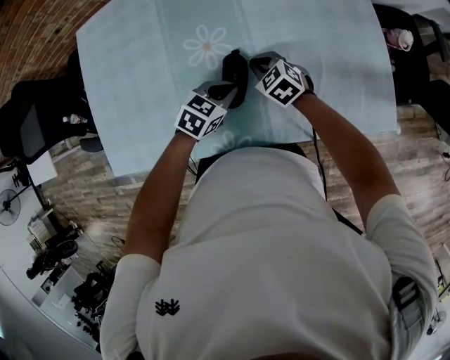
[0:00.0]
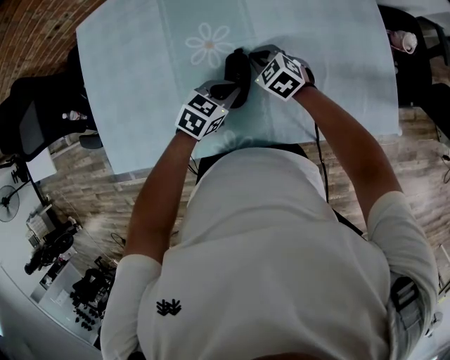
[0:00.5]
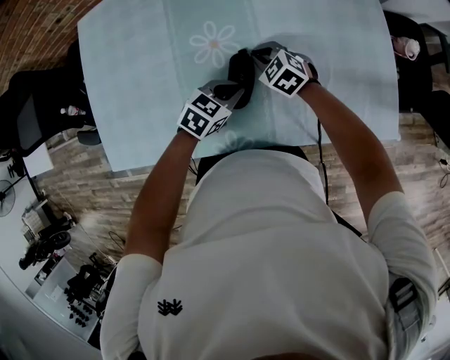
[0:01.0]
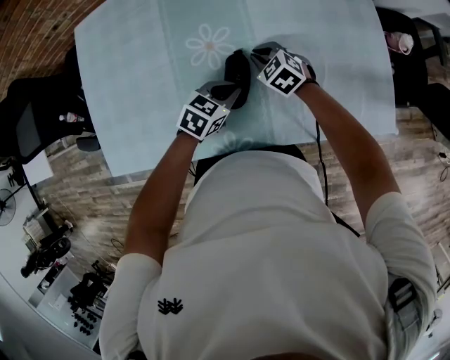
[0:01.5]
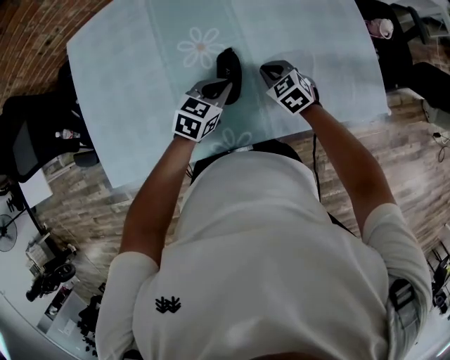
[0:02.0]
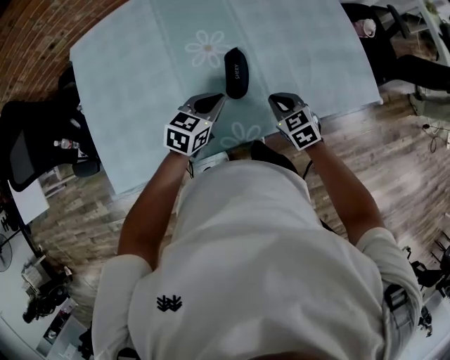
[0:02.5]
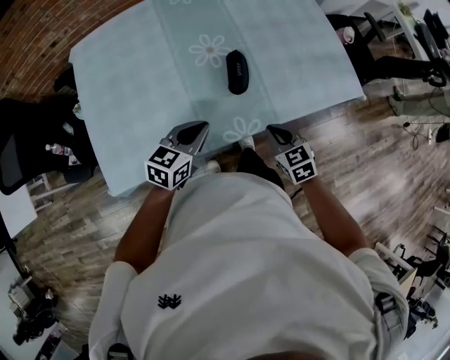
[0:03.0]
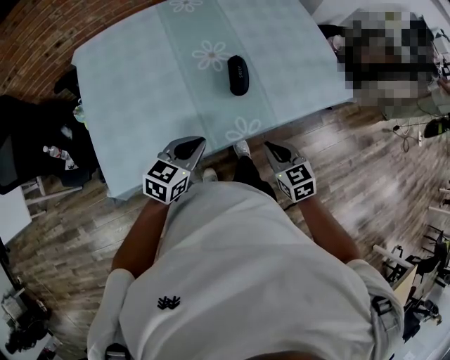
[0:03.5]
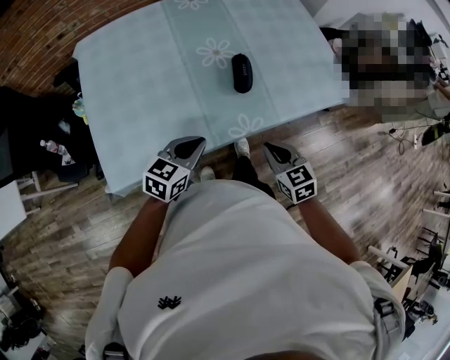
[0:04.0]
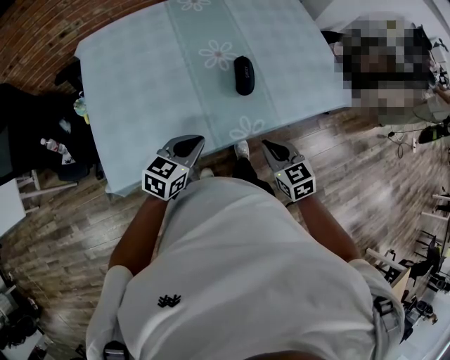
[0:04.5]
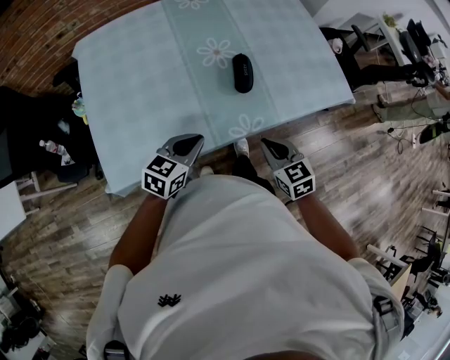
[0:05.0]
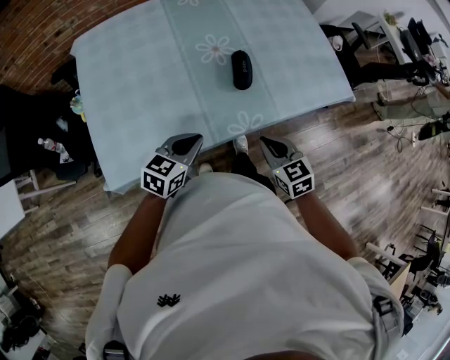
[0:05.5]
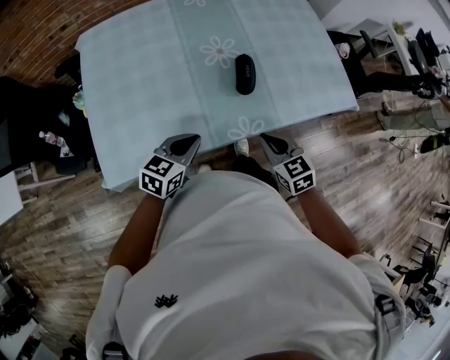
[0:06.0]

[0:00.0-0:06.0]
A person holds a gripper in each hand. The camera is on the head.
0:00.0 to 0:02.0: The right gripper changes place by about 5 cm.
0:02.0 to 0:04.0: The left gripper shifts some 30 cm backward and to the left. Meanwhile the right gripper travels backward and upward by roughly 35 cm, and turns by some 20 degrees.
0:04.0 to 0:06.0: The grippers make only small movements.

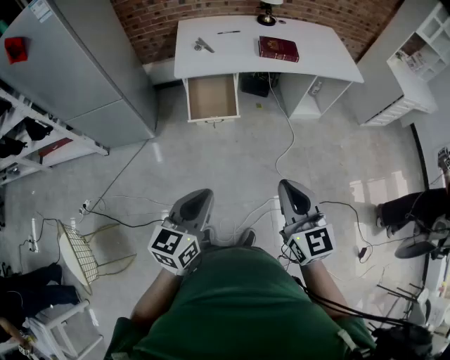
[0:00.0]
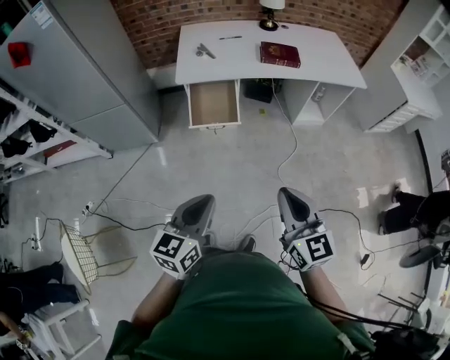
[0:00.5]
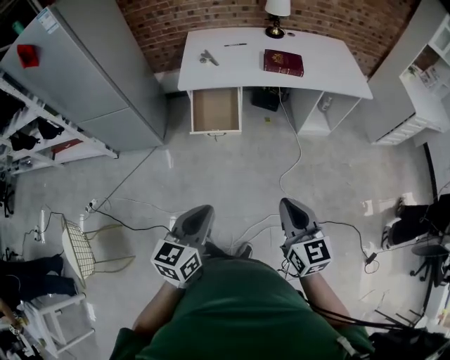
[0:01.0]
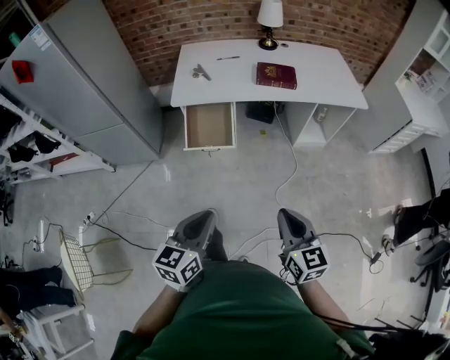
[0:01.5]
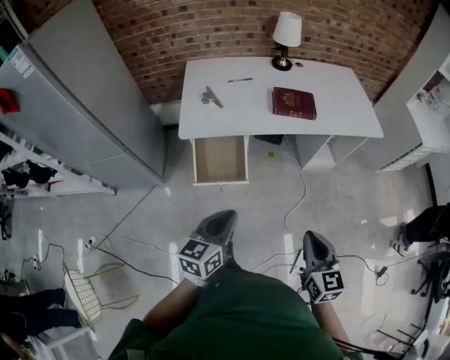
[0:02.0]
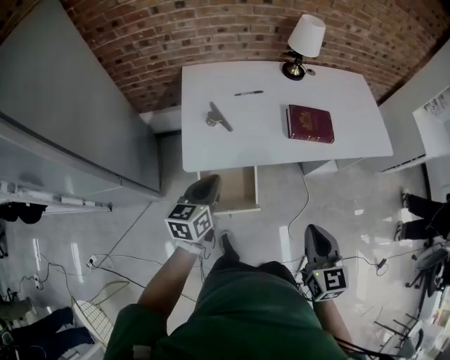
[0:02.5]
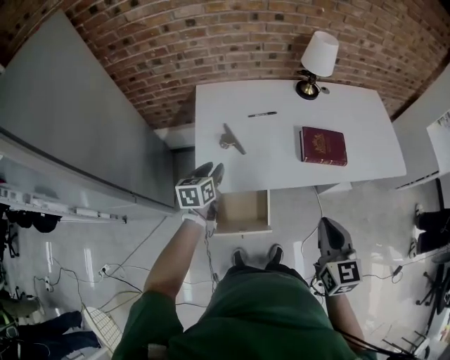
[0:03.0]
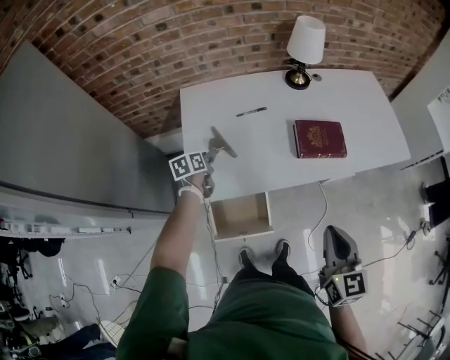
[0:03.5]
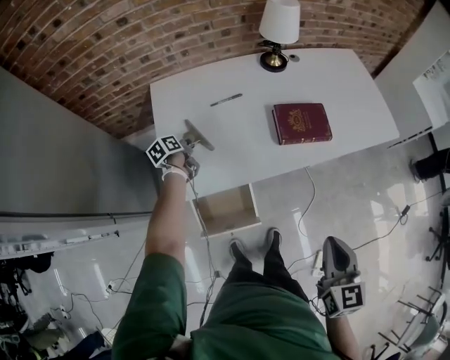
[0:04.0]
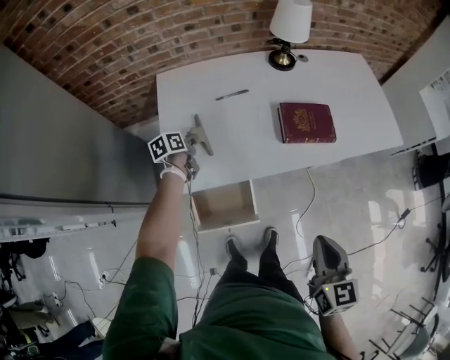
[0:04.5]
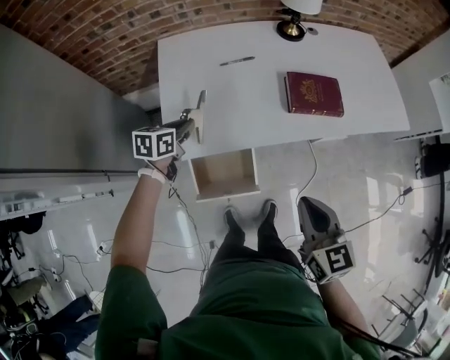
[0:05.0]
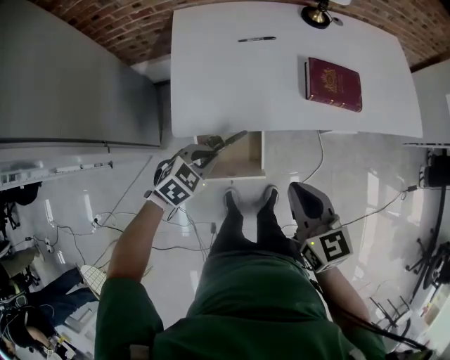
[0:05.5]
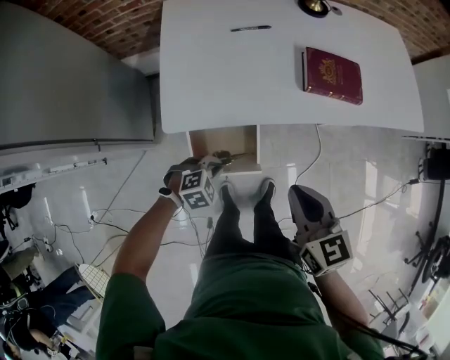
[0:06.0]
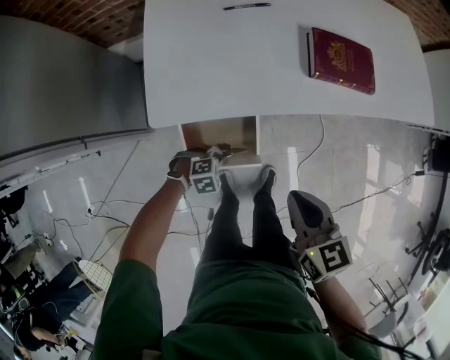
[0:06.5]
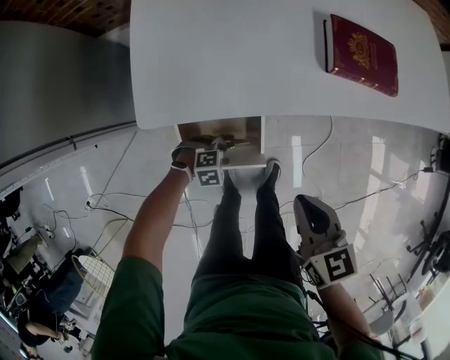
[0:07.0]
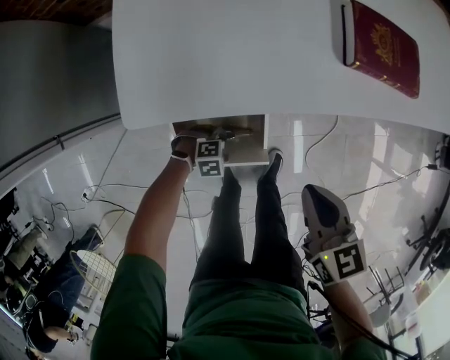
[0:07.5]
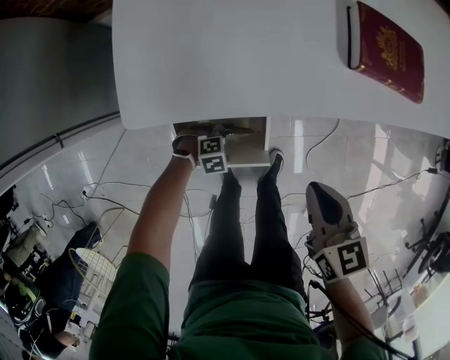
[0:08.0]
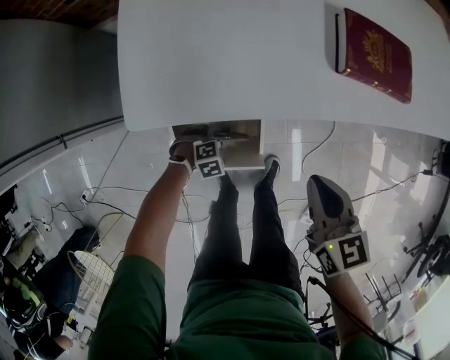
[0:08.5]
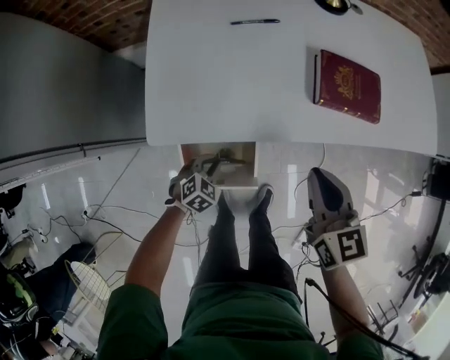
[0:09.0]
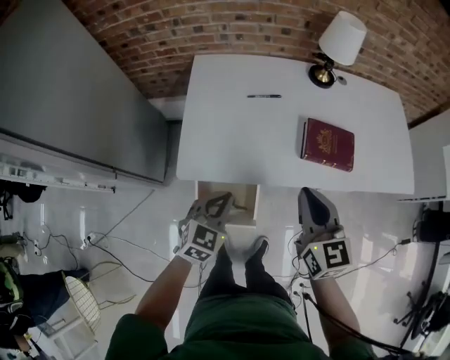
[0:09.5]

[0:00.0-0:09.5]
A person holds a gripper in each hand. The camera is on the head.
0:00.0 to 0:02.0: The right gripper heads forward, to the right and downward, covering roughly 25 cm; the left gripper moves forward, some 25 cm.
0:02.0 to 0:04.0: The right gripper heads forward, covering about 25 cm, while the left gripper shifts roughly 70 cm forward, to the left and downward, changes its angle by roughly 40 degrees, and opens its fingers.
0:04.0 to 0:05.5: The left gripper heads backward and to the right, covering some 30 cm, rotates around the line of its fingers by roughly 80 degrees, clockwise from behind, and closes up. Meanwhile the right gripper moves to the left, roughly 15 cm, and turns by approximately 30 degrees.
0:05.5 to 0:07.5: The right gripper goes roughly 20 cm downward, while the left gripper shifts some 35 cm downward, and swivels approximately 40 degrees.
0:07.5 to 0:09.5: The right gripper shifts roughly 25 cm upward, and changes its angle by some 30 degrees; the left gripper is displaced upward by about 40 cm, tilts its fingers about 40 degrees upward, and opens and closes again.

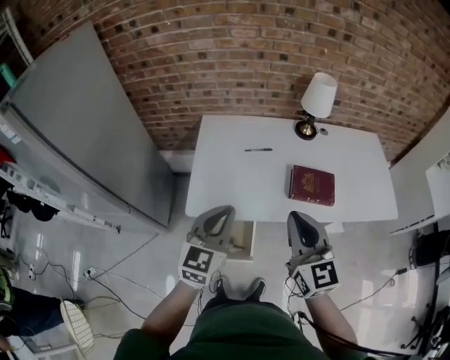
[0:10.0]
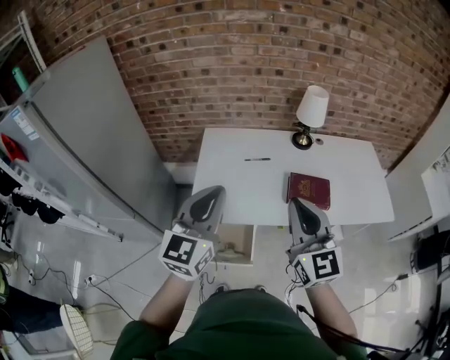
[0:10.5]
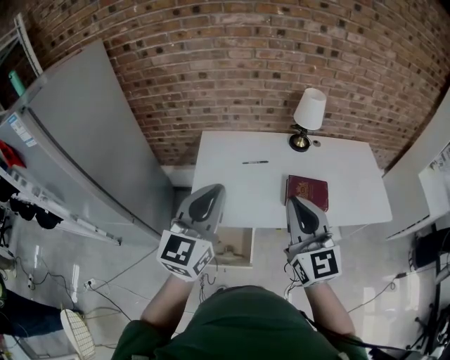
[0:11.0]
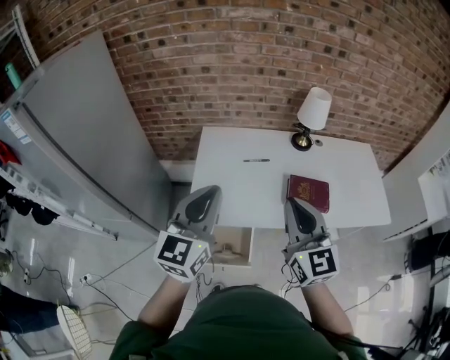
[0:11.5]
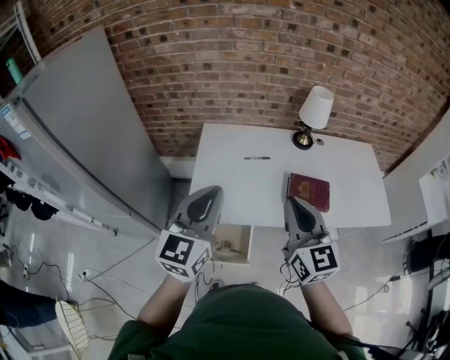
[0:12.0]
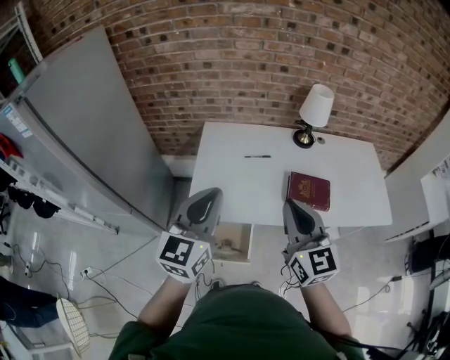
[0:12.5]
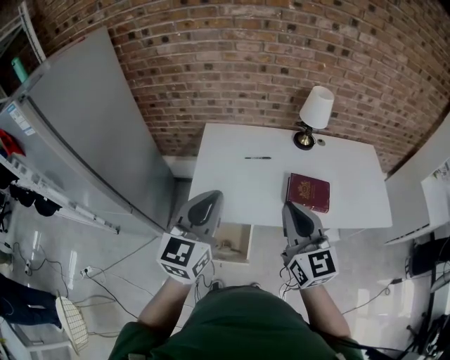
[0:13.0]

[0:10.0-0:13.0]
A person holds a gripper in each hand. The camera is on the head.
0:10.0 to 0:11.5: The left gripper shifts approximately 15 cm upward. The right gripper moves upward, about 5 cm.
0:11.5 to 0:13.0: The grippers move only a little.

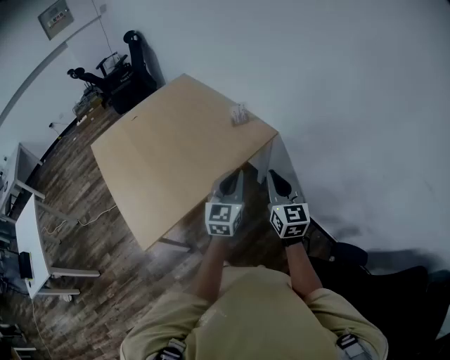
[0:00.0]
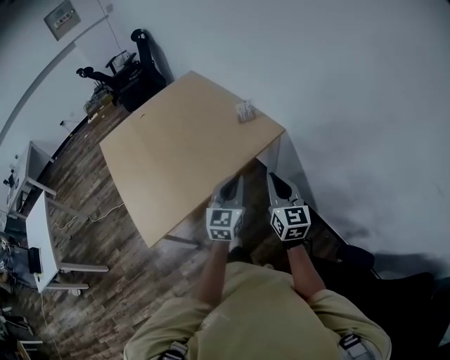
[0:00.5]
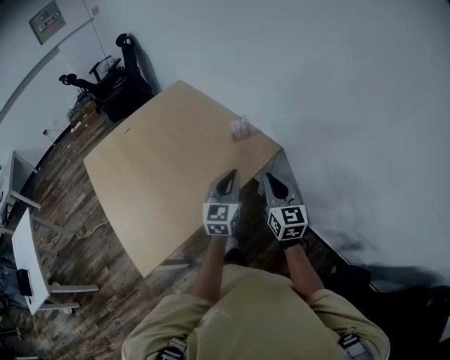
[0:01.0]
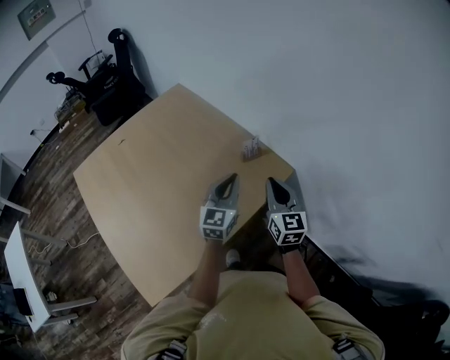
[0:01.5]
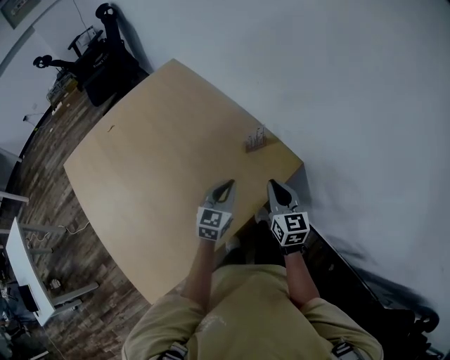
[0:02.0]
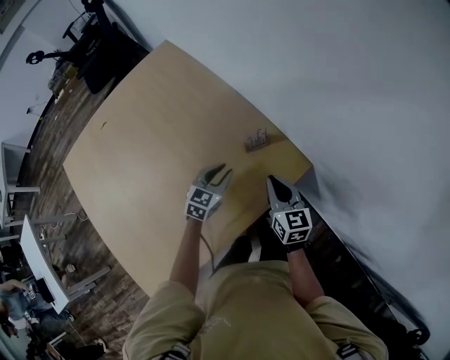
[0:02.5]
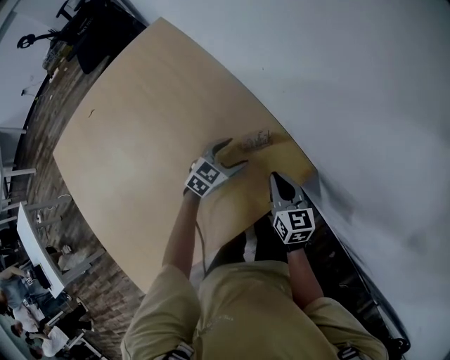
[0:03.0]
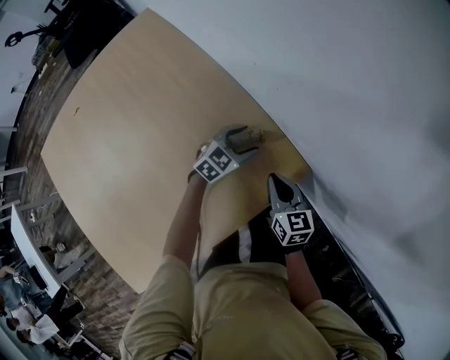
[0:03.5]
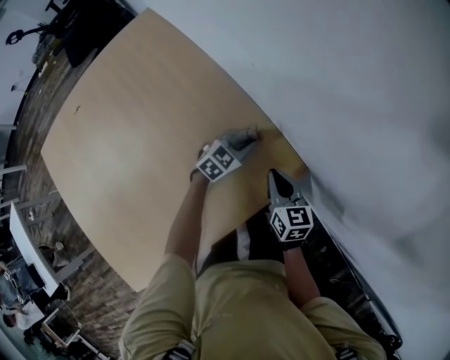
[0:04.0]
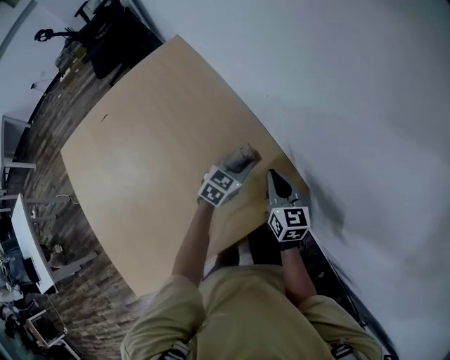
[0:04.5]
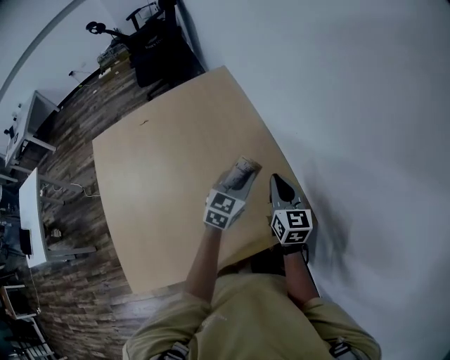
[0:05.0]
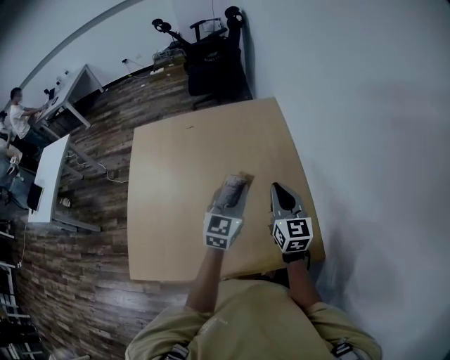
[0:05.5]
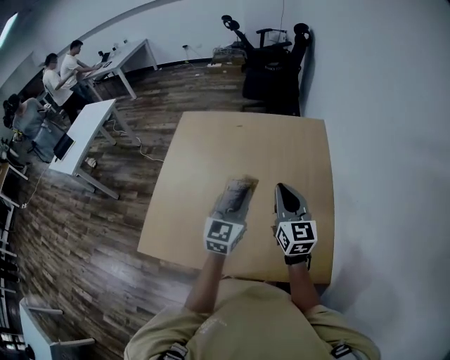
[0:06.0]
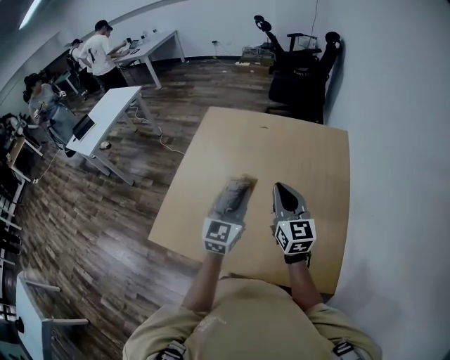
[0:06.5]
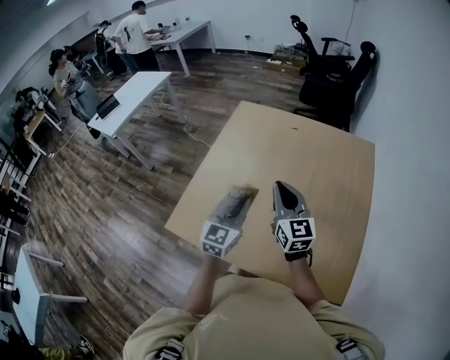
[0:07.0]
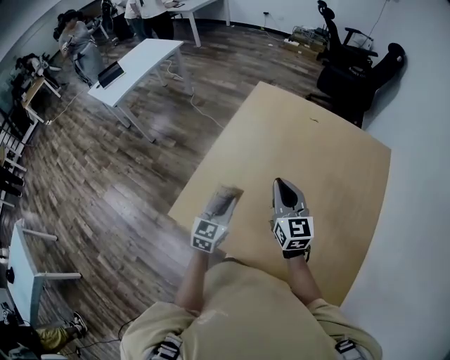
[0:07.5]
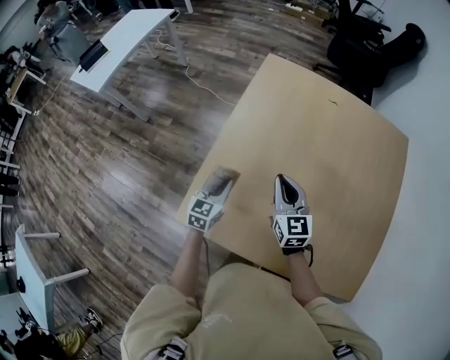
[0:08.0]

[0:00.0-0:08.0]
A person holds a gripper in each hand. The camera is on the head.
0:00.0 to 0:02.0: The left gripper is displaced forward and downward by approximately 40 cm. Meanwhile the right gripper moves forward, approximately 35 cm.
0:02.0 to 0:04.0: Both grippers travel together forward and downward, roughly 30 cm. The left gripper changes its angle by approximately 30 degrees, and opens, then closes once more.
0:04.0 to 0:06.0: Both grippers move upward, some 40 cm. The left gripper tilts its fingers about 30 degrees upward. The right gripper changes its angle by about 60 degrees.
0:06.0 to 0:08.0: The two grippers travel together, to the left, roughly 40 cm. The left gripper travels downward by some 25 cm, and swivels some 30 degrees. Meanwhile the right gripper swivels approximately 20 degrees.
